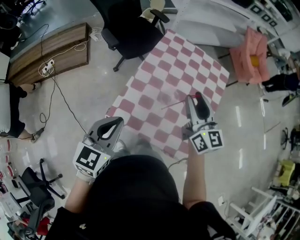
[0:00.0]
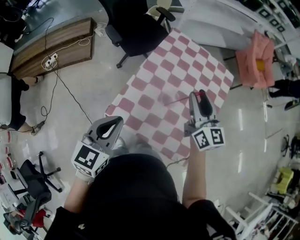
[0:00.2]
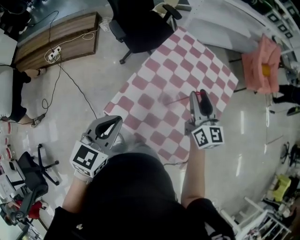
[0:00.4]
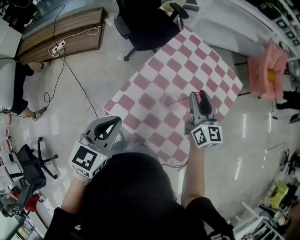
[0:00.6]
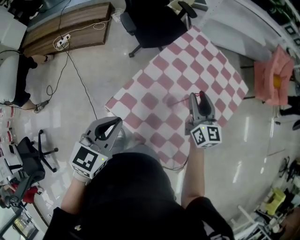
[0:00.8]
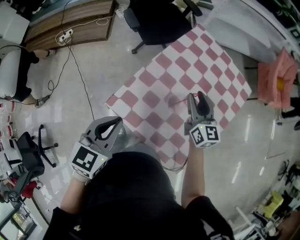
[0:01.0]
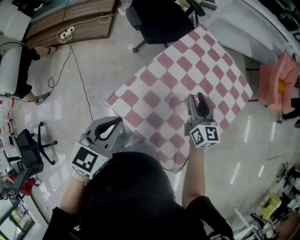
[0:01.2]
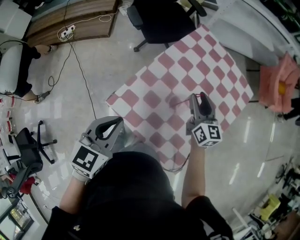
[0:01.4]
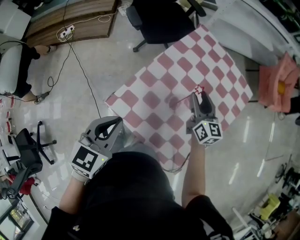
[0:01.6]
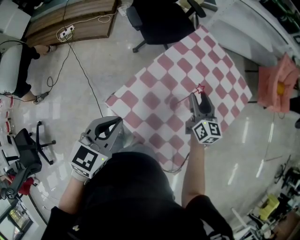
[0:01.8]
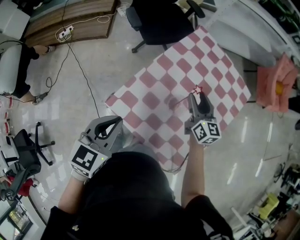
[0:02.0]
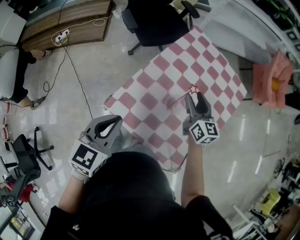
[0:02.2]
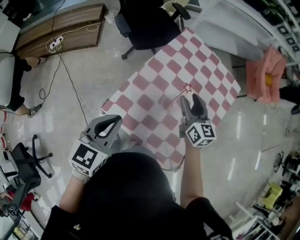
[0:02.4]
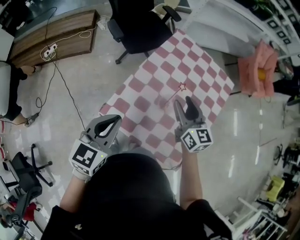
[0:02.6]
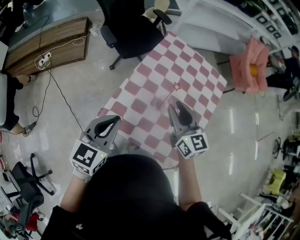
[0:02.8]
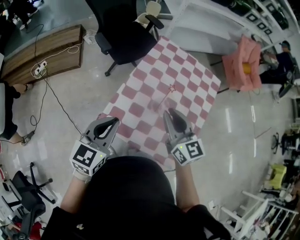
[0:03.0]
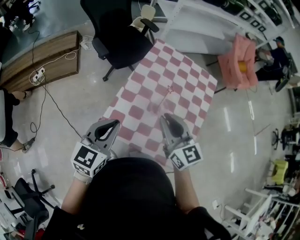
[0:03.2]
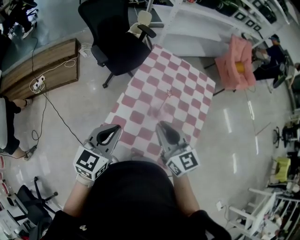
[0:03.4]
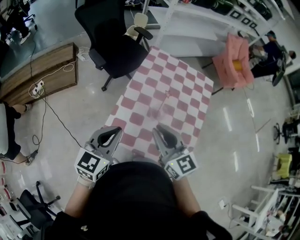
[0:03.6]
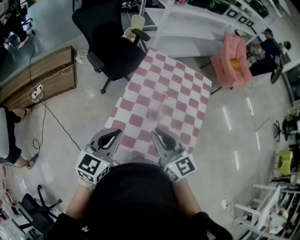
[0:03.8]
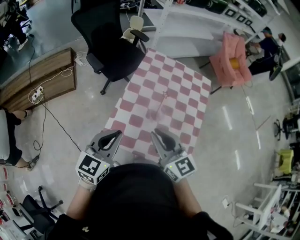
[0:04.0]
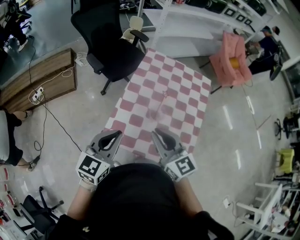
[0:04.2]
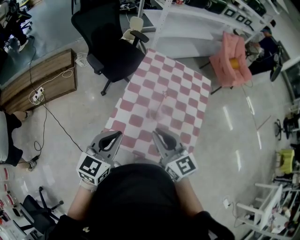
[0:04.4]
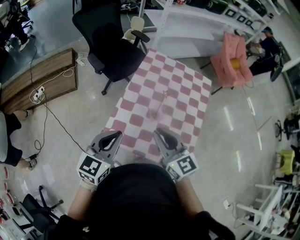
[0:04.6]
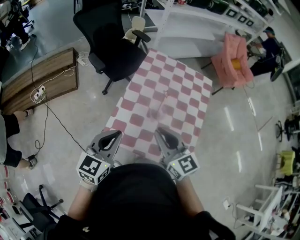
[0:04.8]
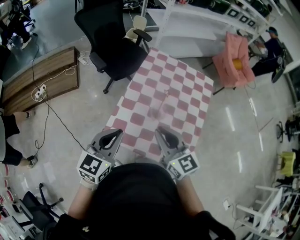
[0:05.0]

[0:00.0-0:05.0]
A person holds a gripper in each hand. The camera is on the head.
0:00.0 to 0:01.6: The left gripper is displaced downward by roughly 5 cm. Meanwhile the right gripper moves downward and forward, about 20 cm.
0:01.6 to 0:03.4: The left gripper moves upward, some 5 cm, and rotates roughly 20 degrees. The right gripper is displaced backward, upward and to the left by roughly 25 cm, and closes its fingers.
0:03.4 to 0:05.0: There are only small adjustments of the grippers.

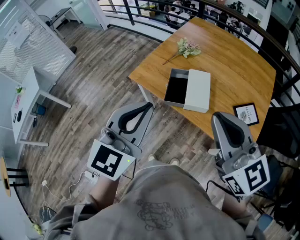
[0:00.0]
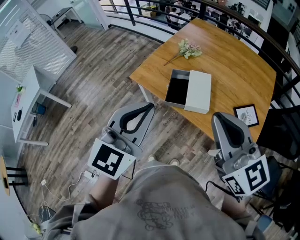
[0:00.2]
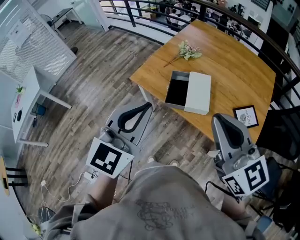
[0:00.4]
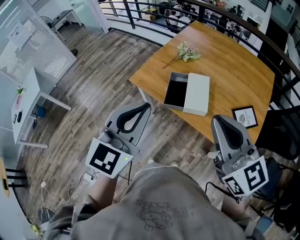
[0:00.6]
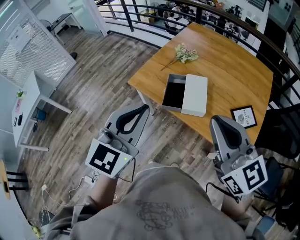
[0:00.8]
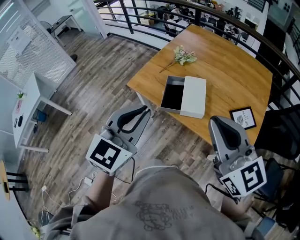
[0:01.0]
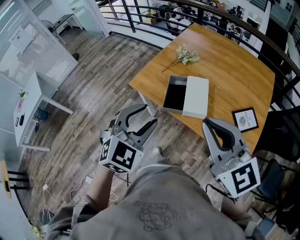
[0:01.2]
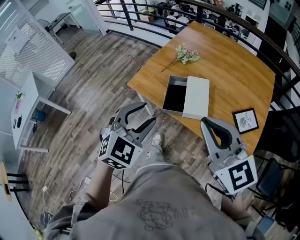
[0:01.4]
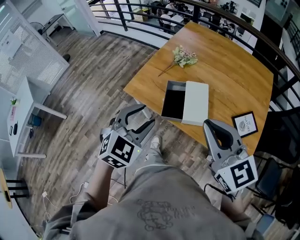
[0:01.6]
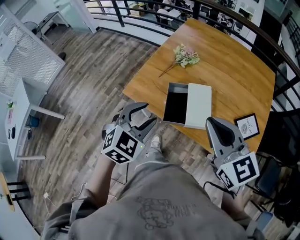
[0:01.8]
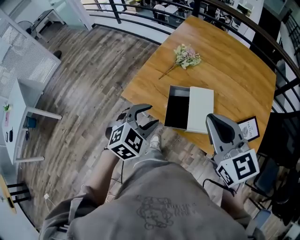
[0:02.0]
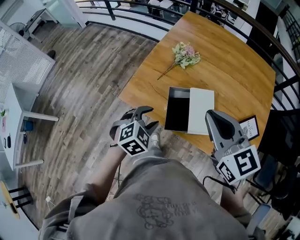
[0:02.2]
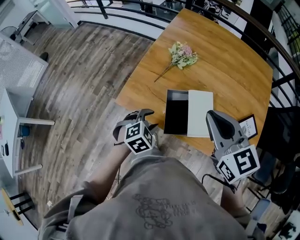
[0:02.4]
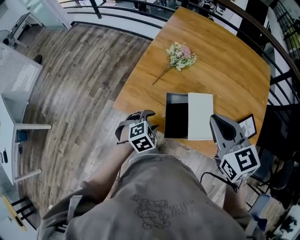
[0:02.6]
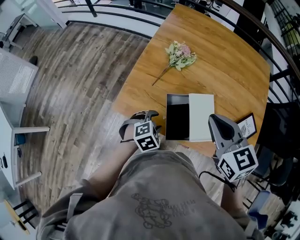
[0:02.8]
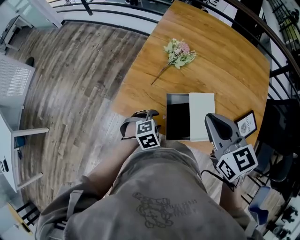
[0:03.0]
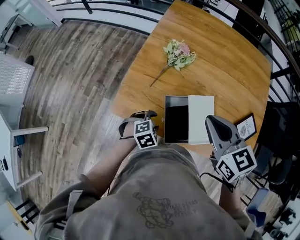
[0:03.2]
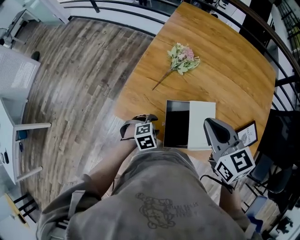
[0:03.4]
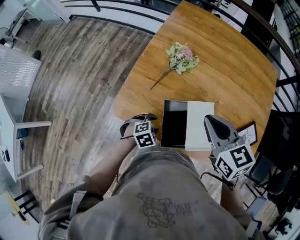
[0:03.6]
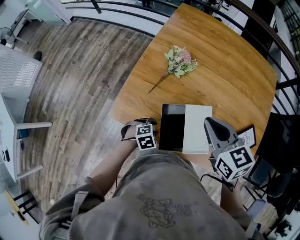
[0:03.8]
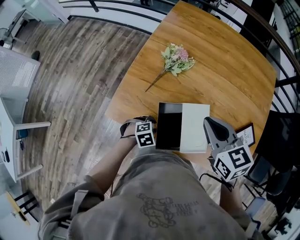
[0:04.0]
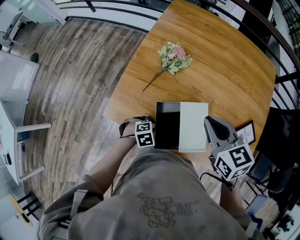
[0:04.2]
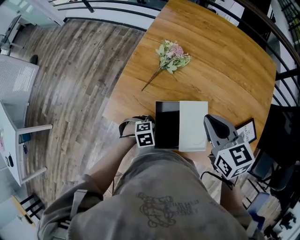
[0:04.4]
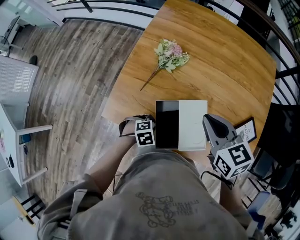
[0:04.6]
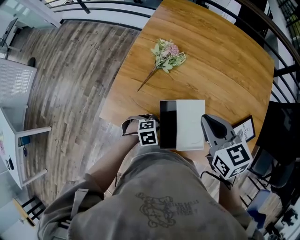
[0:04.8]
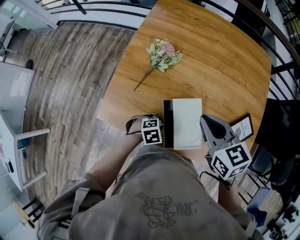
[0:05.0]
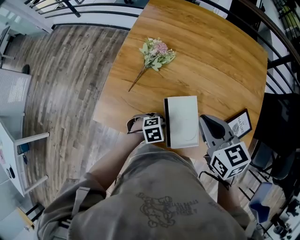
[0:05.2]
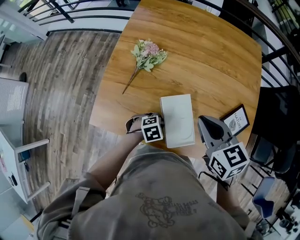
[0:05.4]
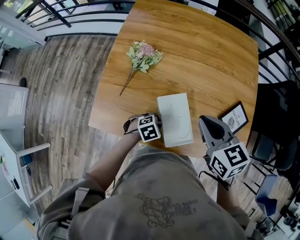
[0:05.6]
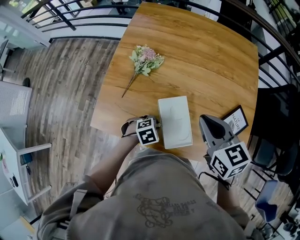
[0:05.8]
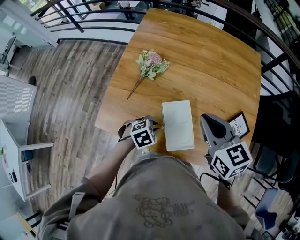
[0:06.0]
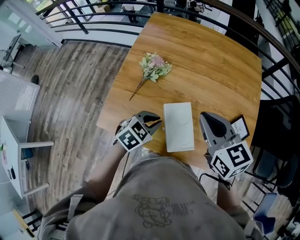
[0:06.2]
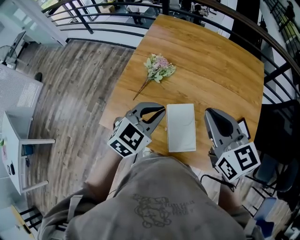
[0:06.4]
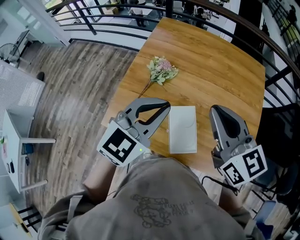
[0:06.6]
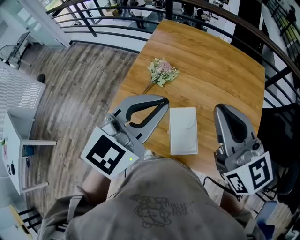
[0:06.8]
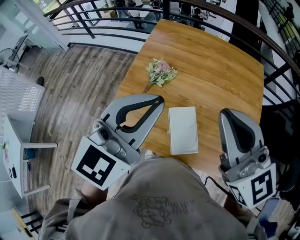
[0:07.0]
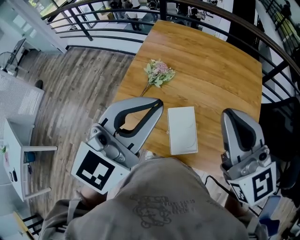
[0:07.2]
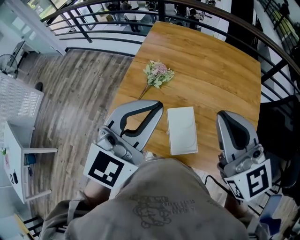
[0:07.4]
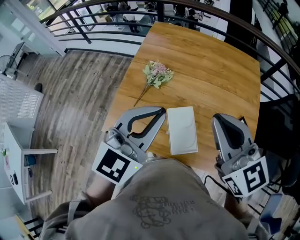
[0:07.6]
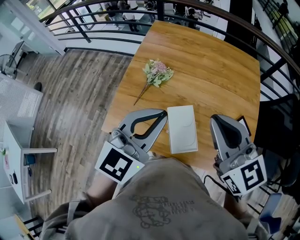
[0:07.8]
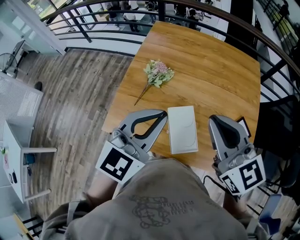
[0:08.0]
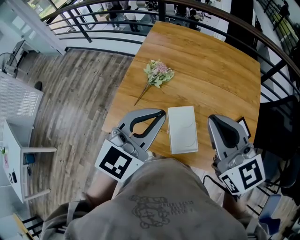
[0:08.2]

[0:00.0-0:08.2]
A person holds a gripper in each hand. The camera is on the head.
0:00.0 to 0:01.6: The right gripper moves forward, roughly 5 cm. Meanwhile the left gripper shifts approximately 15 cm downward and forward, turns by some 30 degrees, and opens.
0:01.6 to 0:03.2: The right gripper moves approximately 25 cm, and turns by approximately 30 degrees. Meanwhile the left gripper is displaced downward by roughly 30 cm, and tips its fingers downward by some 30 degrees.
0:03.2 to 0:05.0: The right gripper ends up roughly 10 cm from where it was, while the left gripper changes place by about 10 cm, and closes.
0:05.0 to 0:06.6: The left gripper is displaced upward by approximately 40 cm, and angles its fingers upward, by approximately 50 degrees. The right gripper travels upward by some 15 cm, and swivels roughly 30 degrees.
0:06.6 to 0:08.2: The left gripper moves some 10 cm upward and comes back, while the right gripper goes upward and returns, roughly 10 cm each way.

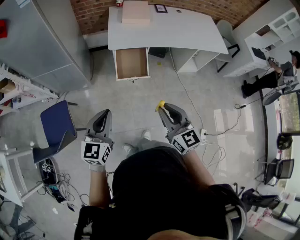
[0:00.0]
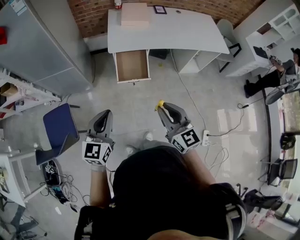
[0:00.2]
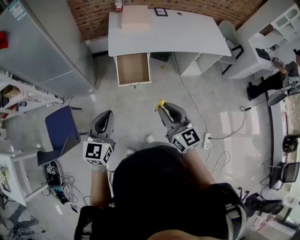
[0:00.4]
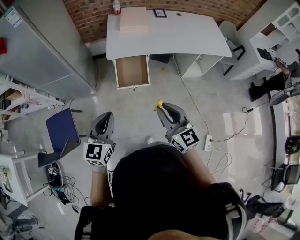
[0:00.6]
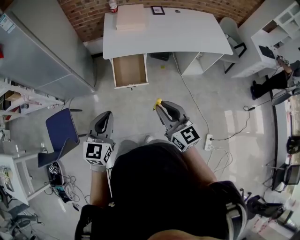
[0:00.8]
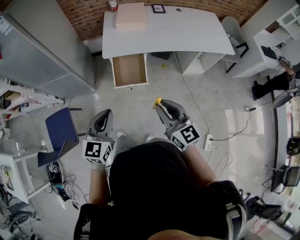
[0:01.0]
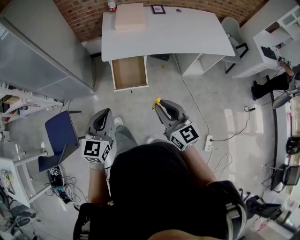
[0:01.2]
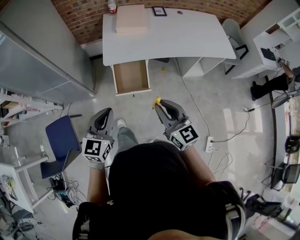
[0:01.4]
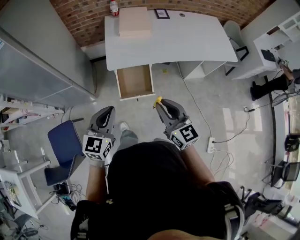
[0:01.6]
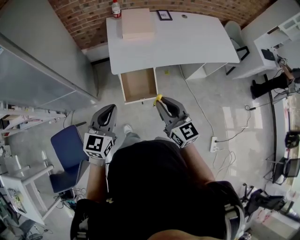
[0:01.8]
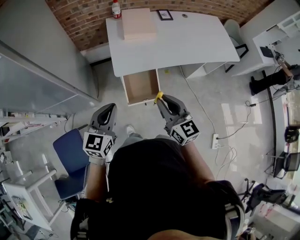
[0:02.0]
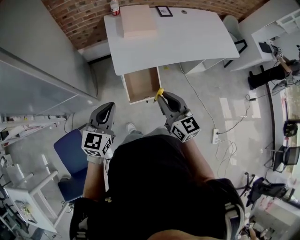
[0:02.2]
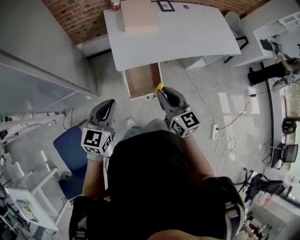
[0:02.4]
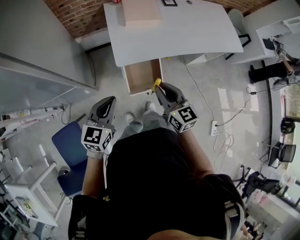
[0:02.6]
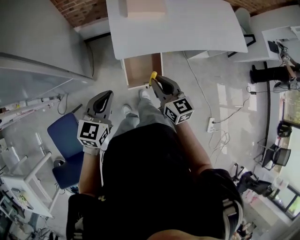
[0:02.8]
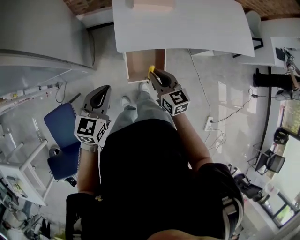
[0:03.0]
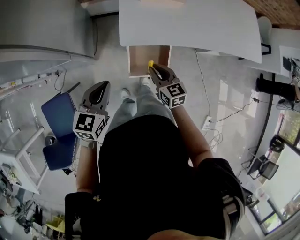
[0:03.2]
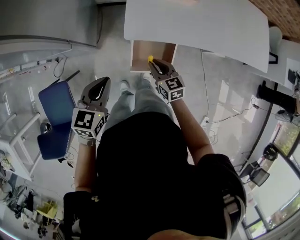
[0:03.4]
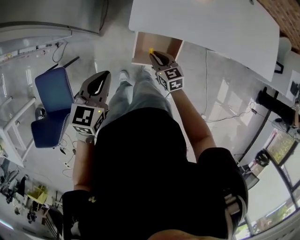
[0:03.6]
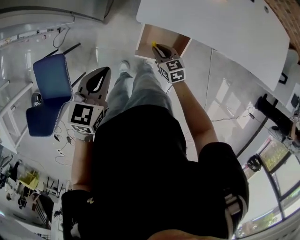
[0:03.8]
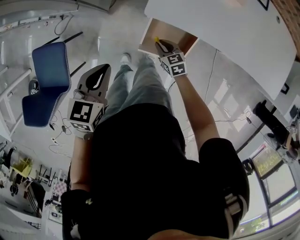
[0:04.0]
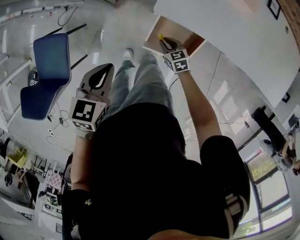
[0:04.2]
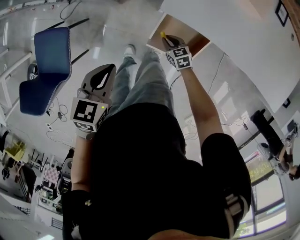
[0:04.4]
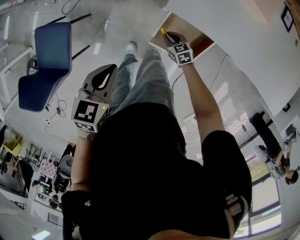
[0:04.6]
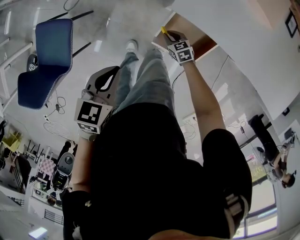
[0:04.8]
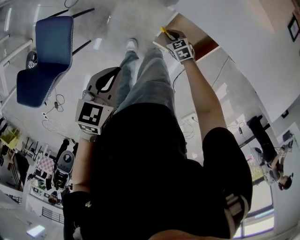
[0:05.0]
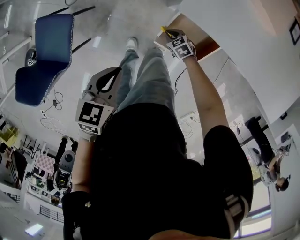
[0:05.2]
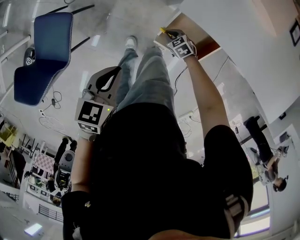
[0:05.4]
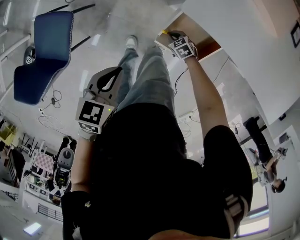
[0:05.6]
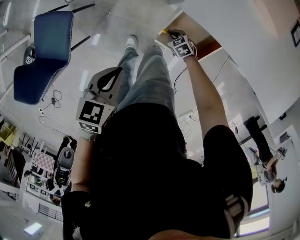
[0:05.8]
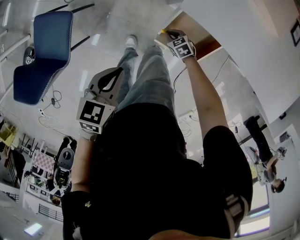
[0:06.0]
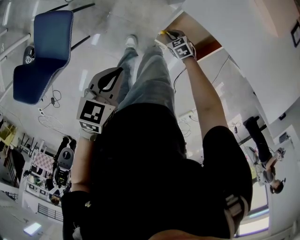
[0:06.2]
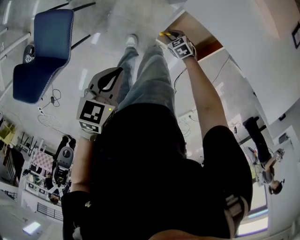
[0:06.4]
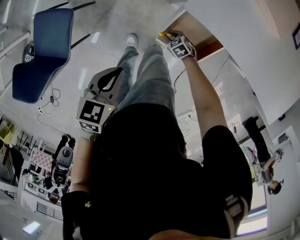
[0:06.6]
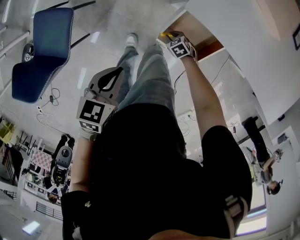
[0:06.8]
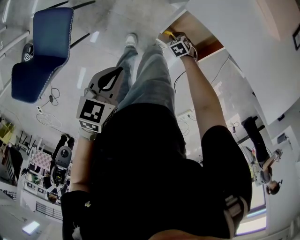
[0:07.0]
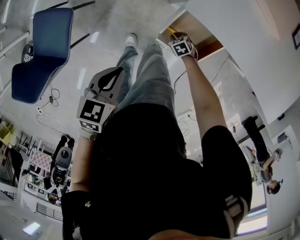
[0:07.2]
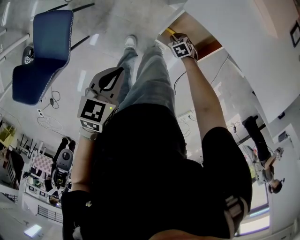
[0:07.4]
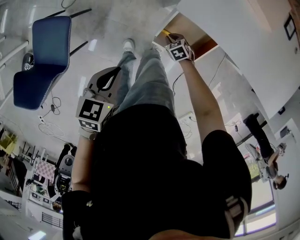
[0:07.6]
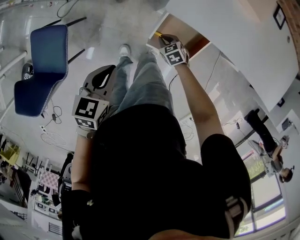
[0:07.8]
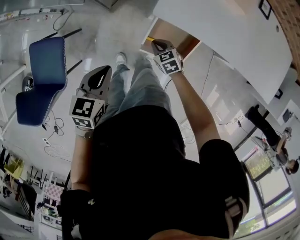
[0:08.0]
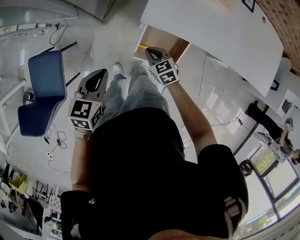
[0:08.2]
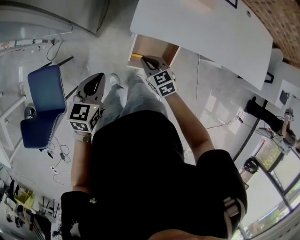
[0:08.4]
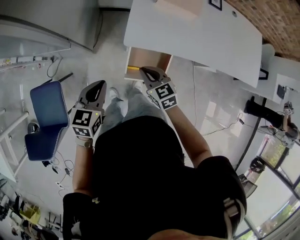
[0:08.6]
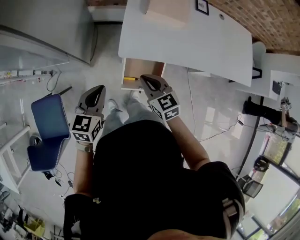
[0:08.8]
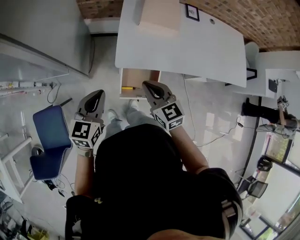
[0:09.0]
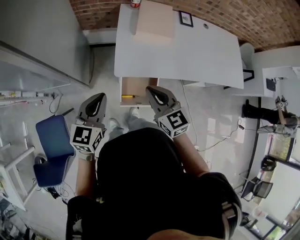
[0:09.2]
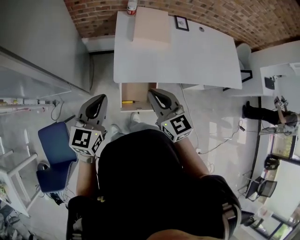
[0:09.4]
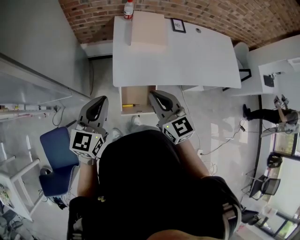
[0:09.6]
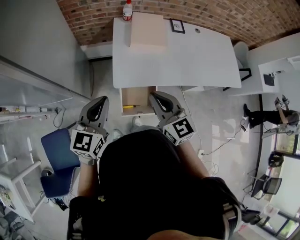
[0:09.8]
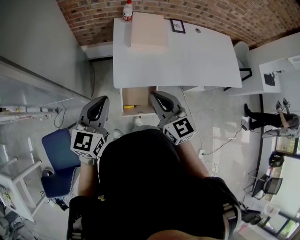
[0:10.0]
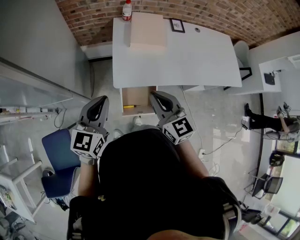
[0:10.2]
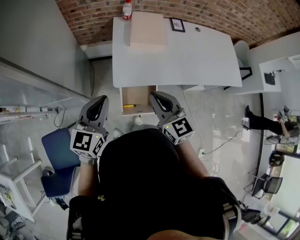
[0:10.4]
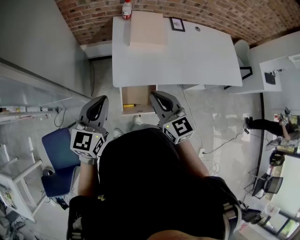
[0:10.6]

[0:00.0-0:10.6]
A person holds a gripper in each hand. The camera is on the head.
0:00.0 to 0:01.6: The two grippers go approximately 20 cm forward.
0:01.6 to 0:03.0: The left gripper goes about 20 cm forward, to the left and downward. Meanwhile the right gripper travels forward, downward and to the left by about 30 cm.
0:03.0 to 0:04.6: The left gripper is displaced downward by roughly 15 cm, and changes its angle by approximately 30 degrees; the right gripper heads downward, covering about 35 cm, and swivels about 50 degrees.
0:04.6 to 0:06.0: The right gripper shifts approximately 5 cm downward.
0:06.0 to 0:07.6: The grippers make only small movements.
0:07.6 to 0:09.0: The left gripper goes approximately 20 cm upward and forward, and turns by roughly 30 degrees; the right gripper heads upward, covering roughly 50 cm, and tilts its fingers some 40 degrees upward.
0:09.0 to 0:10.6: The grippers both shift upward by some 10 cm.
